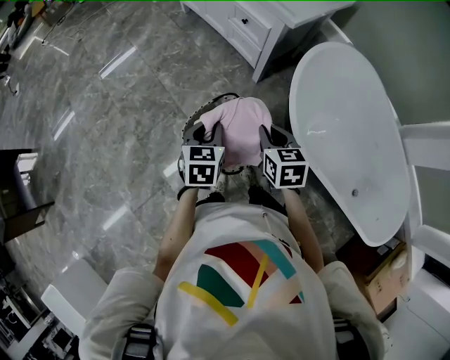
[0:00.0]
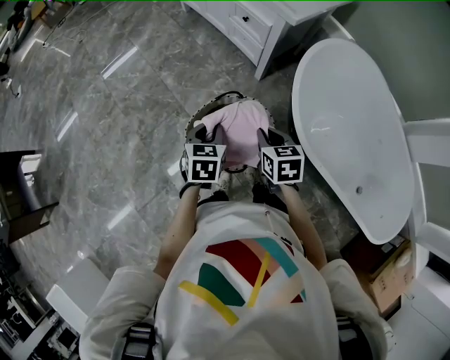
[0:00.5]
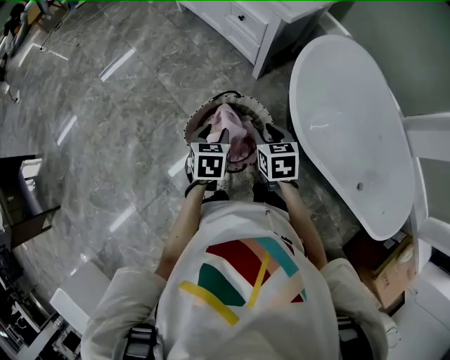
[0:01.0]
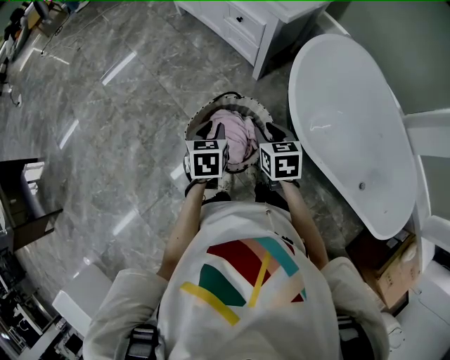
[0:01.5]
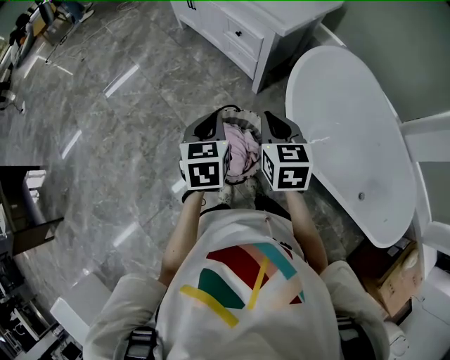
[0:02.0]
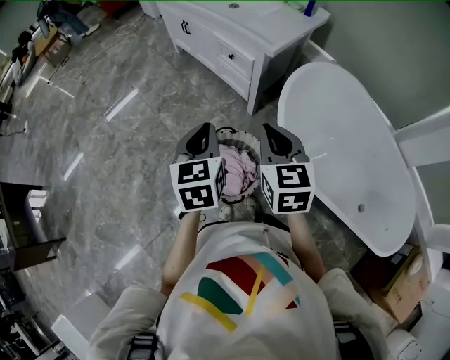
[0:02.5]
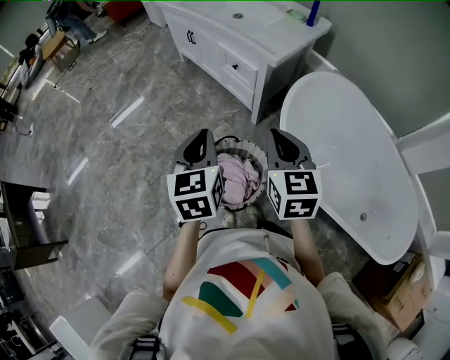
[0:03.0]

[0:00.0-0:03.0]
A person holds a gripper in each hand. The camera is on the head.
0:00.0 to 0:01.5: The grippers move only a little.
0:01.5 to 0:03.0: The two grippers go some 20 cm upward. The right gripper rotates about 30 degrees, and closes its fingers, while the left gripper rotates approximately 30 degrees.

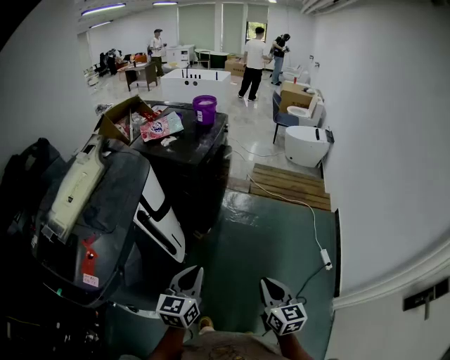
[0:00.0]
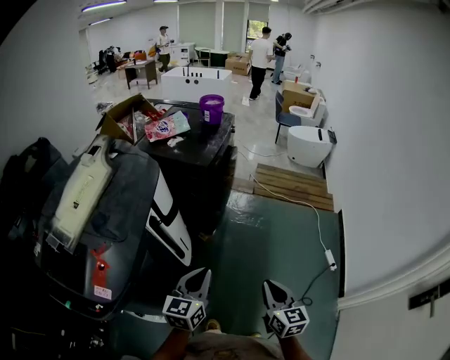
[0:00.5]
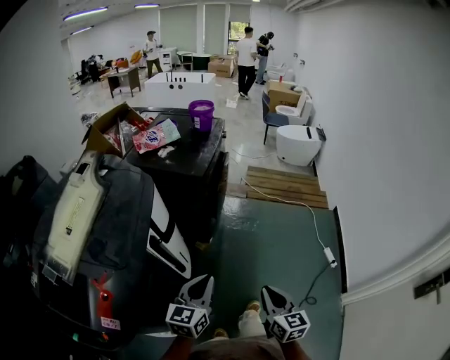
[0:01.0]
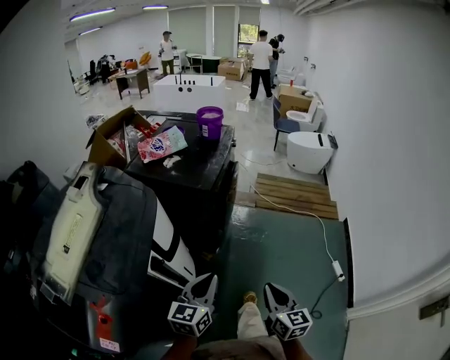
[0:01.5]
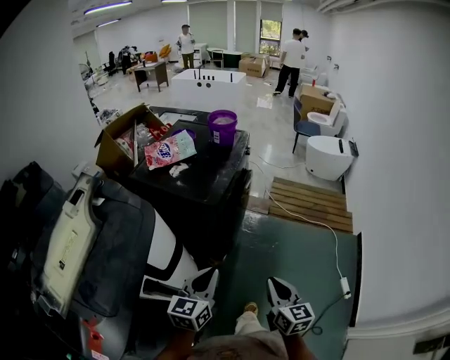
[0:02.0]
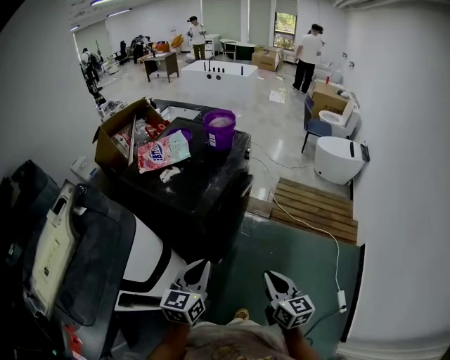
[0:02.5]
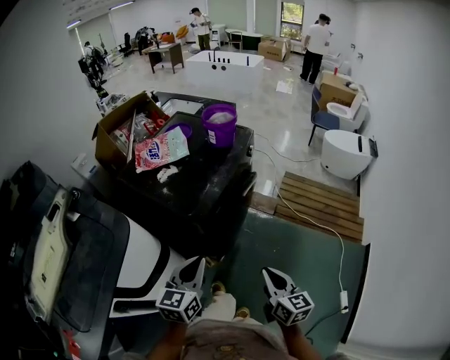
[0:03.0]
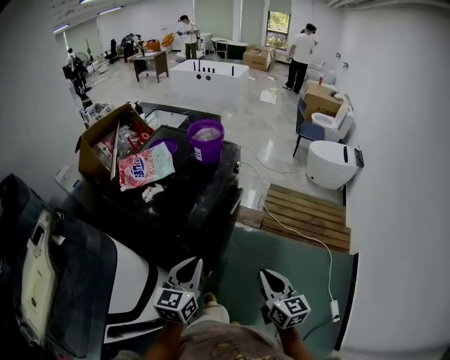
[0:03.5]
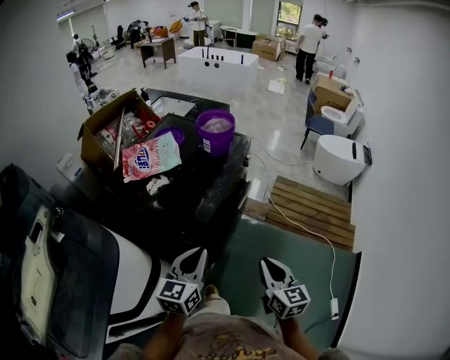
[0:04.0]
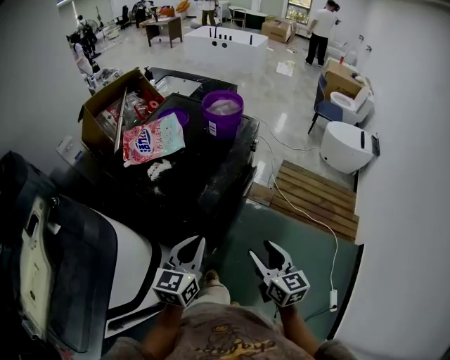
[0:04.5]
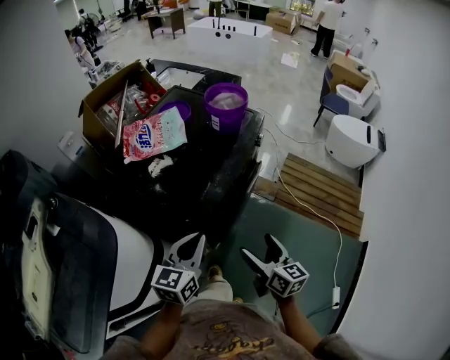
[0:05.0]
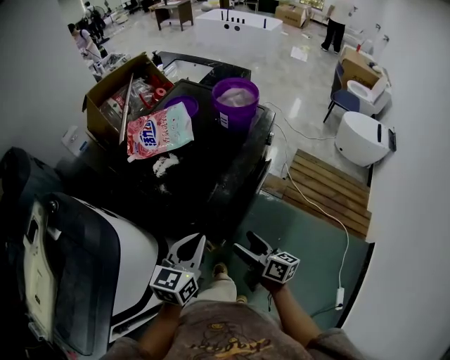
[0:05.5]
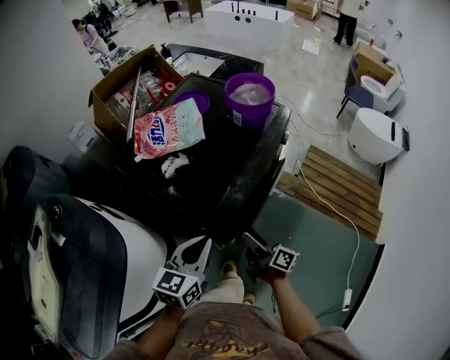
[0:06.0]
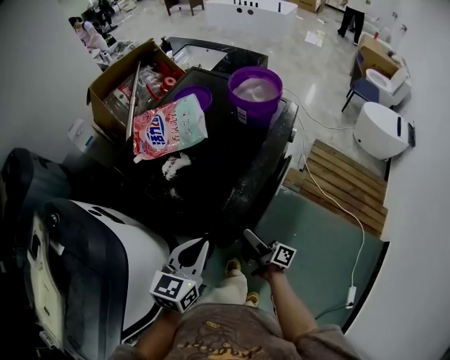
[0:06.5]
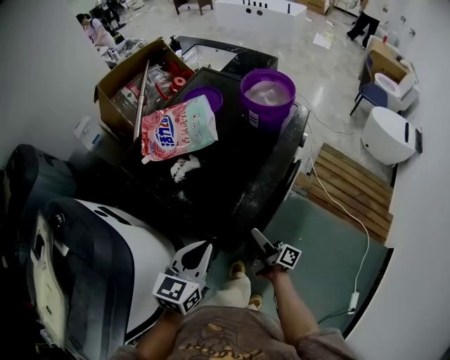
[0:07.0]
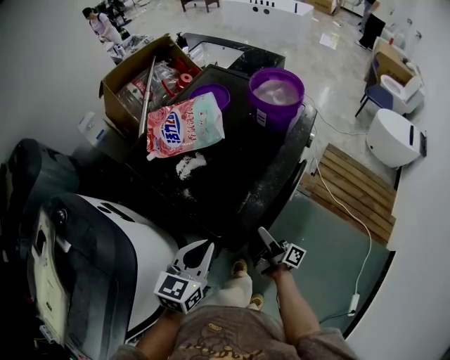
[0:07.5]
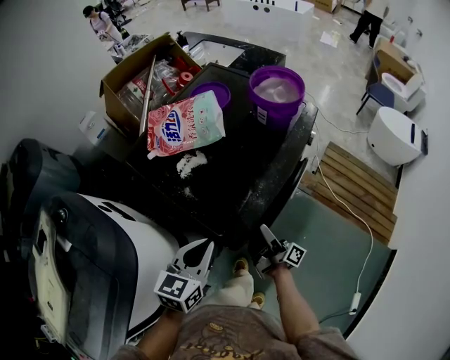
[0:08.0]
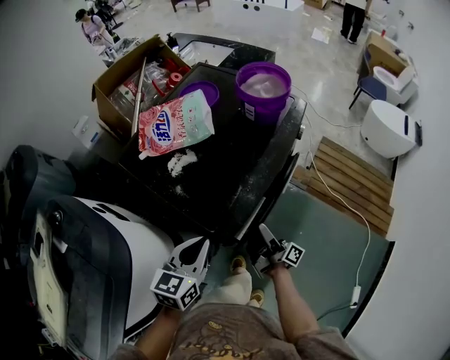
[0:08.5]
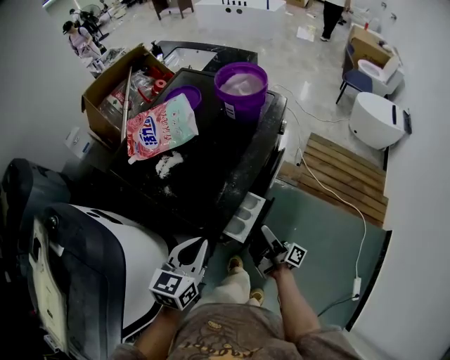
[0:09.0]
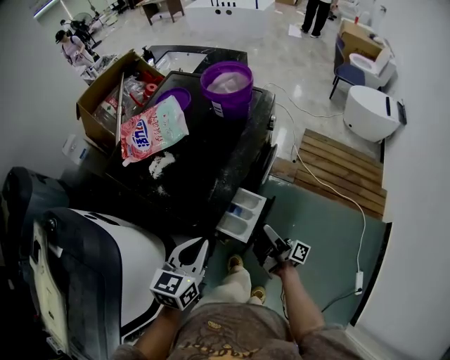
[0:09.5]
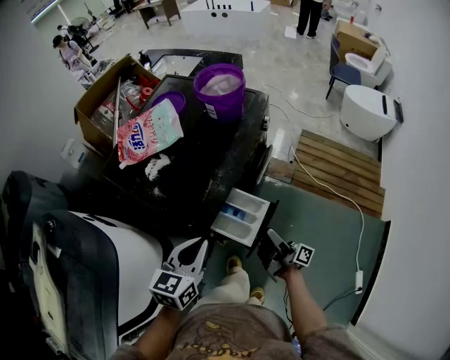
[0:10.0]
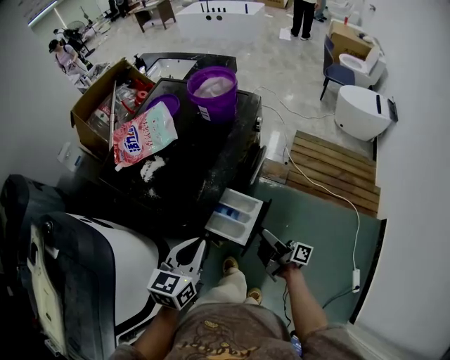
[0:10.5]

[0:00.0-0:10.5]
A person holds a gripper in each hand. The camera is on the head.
0:00.0 to 0:02.0: Both grippers travel together forward, roughly 25 cm.
0:02.0 to 0:04.0: Both grippers move forward, roughly 25 cm.
0:04.0 to 0:06.5: The right gripper shifts approximately 30 cm forward, downward and to the left, rolls clockwise, seen from behind, by approximately 60 degrees, and opens, while the left gripper travels forward, to the left and downward by about 15 cm.
0:06.5 to 0:08.5: There are only small adjustments of the grippers.
0:08.5 to 0:10.5: The right gripper moves to the right and backward, some 15 cm; the left gripper shifts roughly 10 cm to the right.

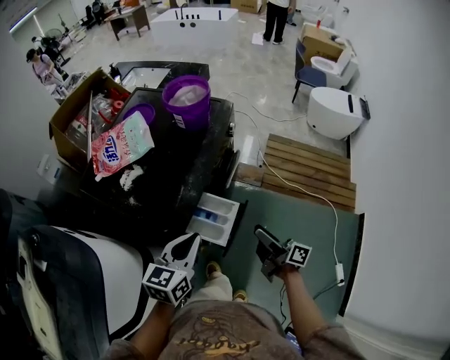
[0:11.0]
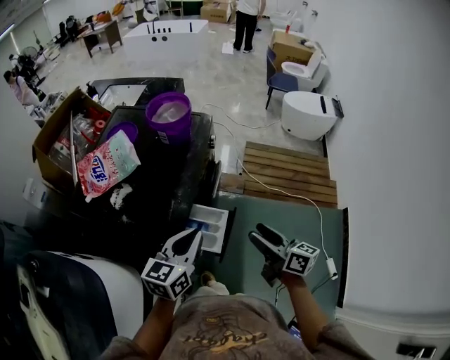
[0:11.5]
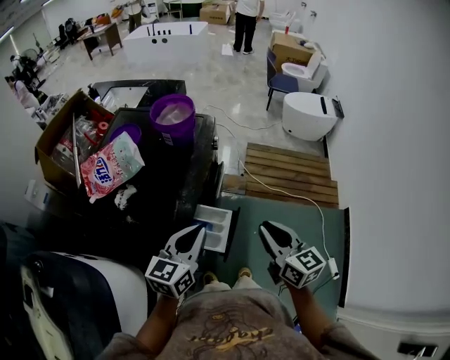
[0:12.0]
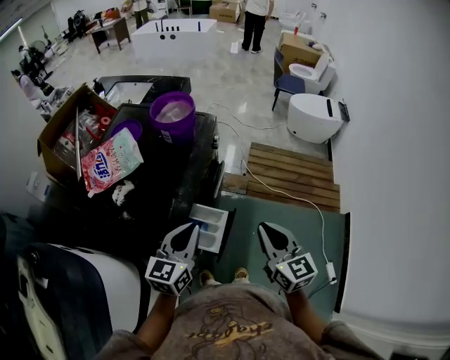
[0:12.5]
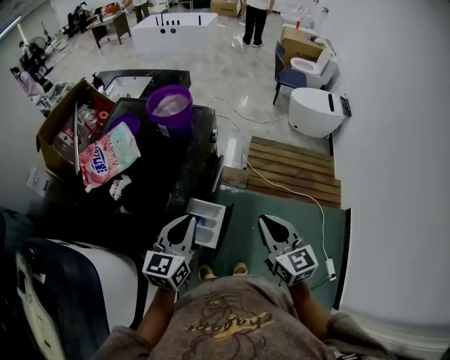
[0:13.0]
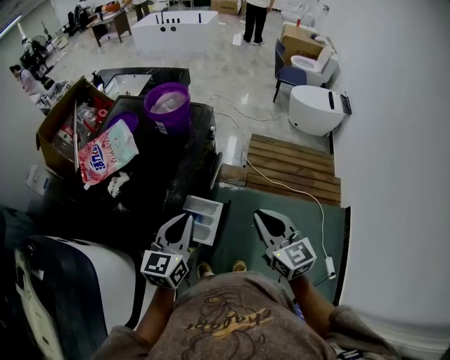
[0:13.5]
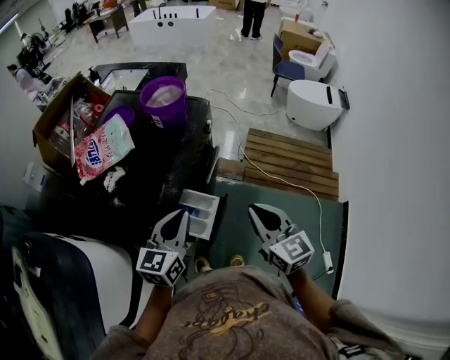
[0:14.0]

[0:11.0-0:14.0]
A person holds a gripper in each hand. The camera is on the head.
0:11.0 to 0:12.5: The left gripper ends up some 5 cm from where it was, while the right gripper travels upward by about 15 cm, rolls counterclockwise, seen from behind, by some 60 degrees, and closes its fingers.
0:12.5 to 0:14.0: The grippers make only small movements.

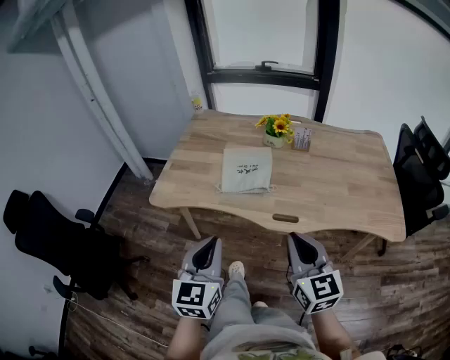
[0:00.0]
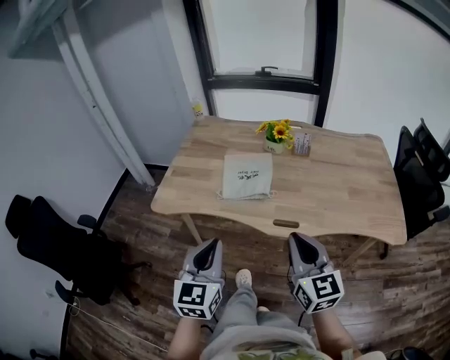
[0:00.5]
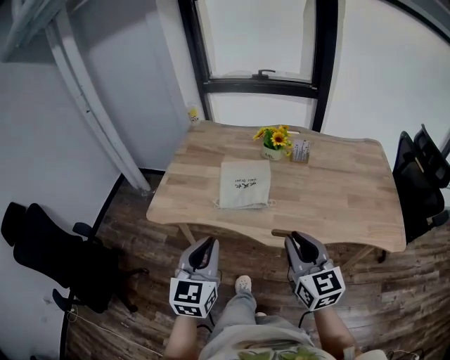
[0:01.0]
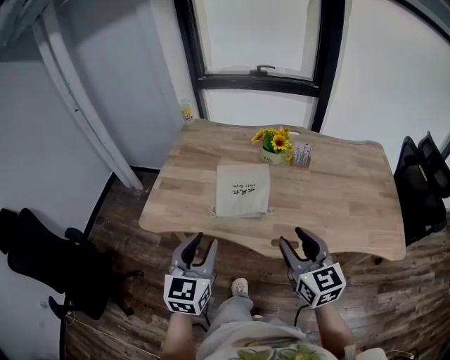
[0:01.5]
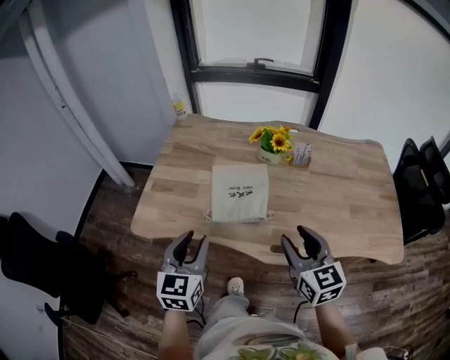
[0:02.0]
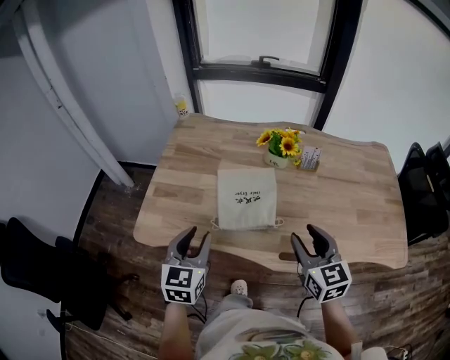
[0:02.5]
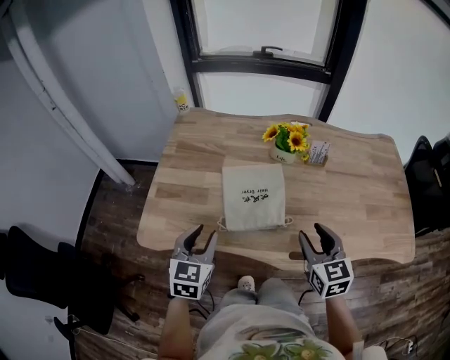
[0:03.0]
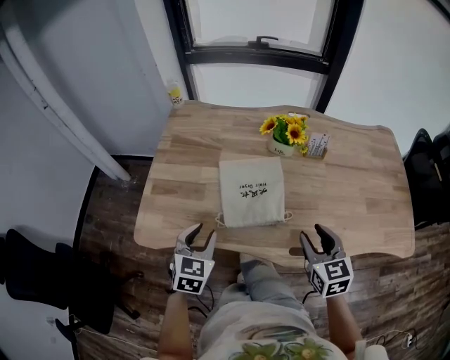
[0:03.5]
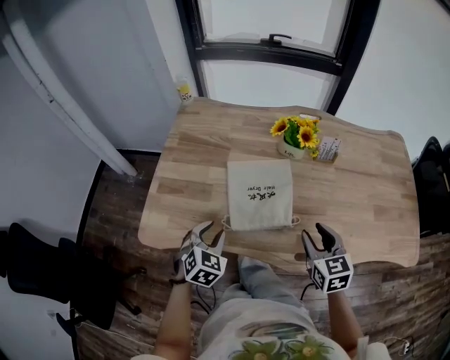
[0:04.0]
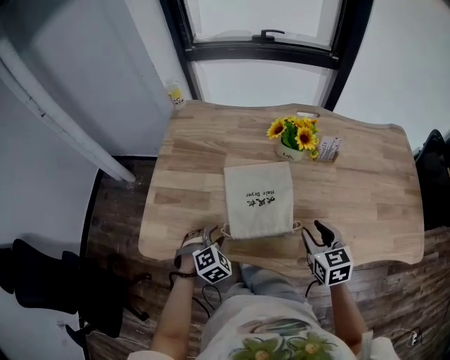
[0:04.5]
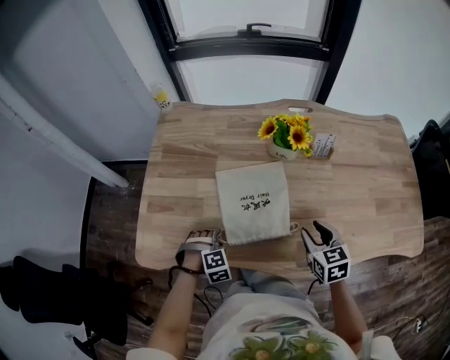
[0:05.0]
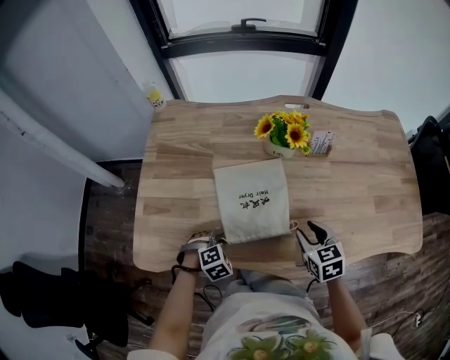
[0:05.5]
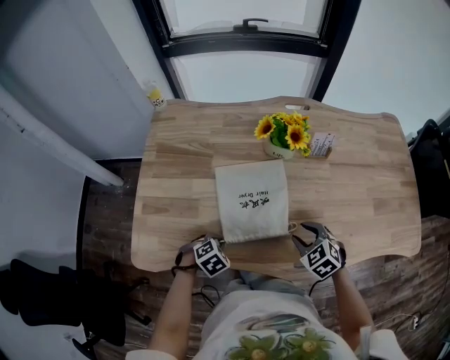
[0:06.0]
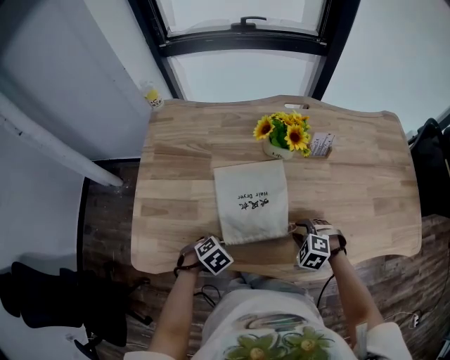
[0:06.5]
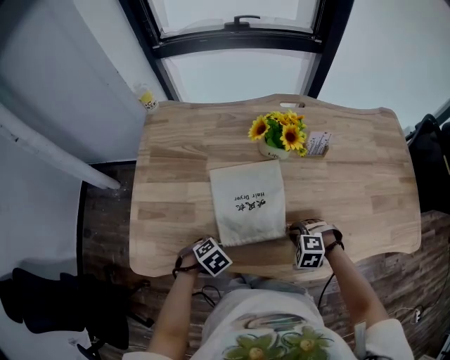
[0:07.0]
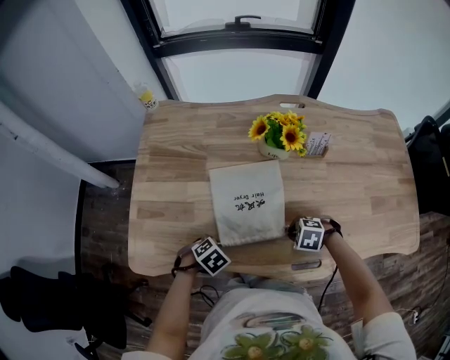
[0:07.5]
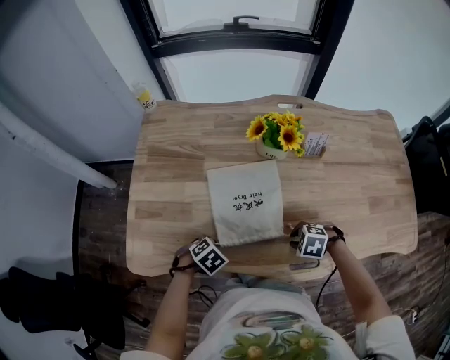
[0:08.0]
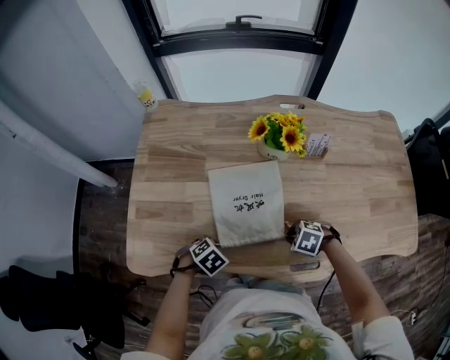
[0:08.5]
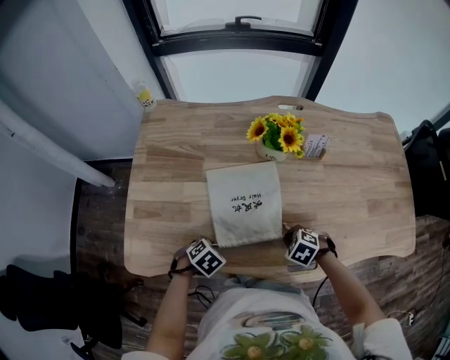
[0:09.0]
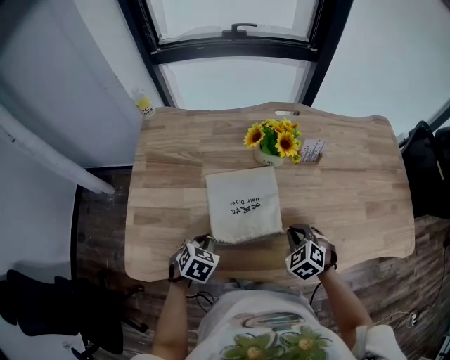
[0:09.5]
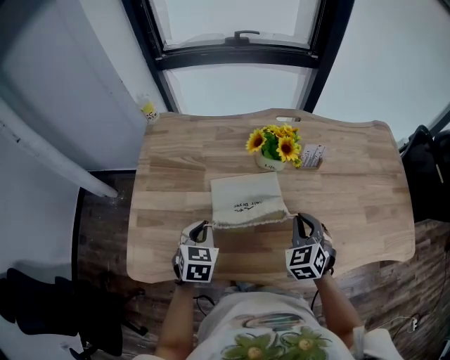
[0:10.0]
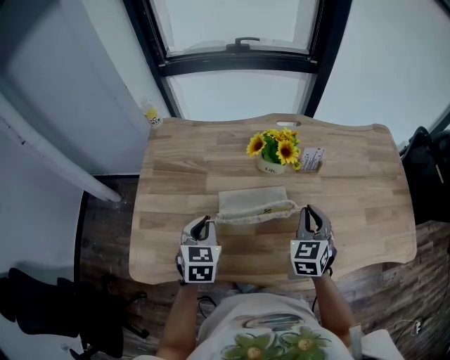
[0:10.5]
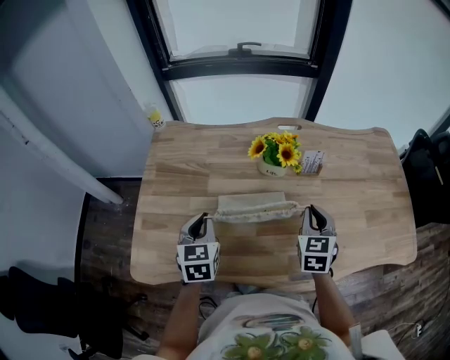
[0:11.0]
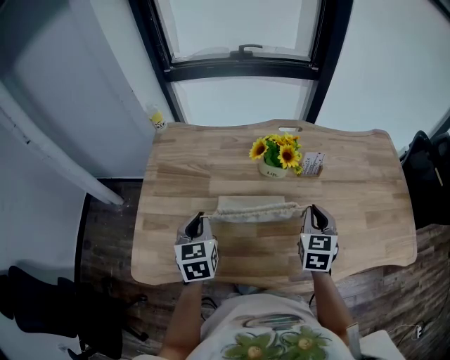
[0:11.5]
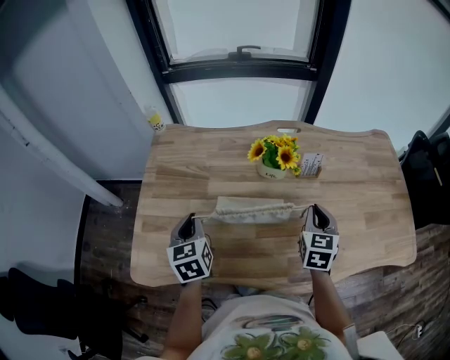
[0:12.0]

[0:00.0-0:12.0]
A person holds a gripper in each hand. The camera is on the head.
0:00.0 to 0:02.0: The two grippers go roughly 20 cm forward. The right gripper opens, while the left gripper opens up.
0:02.0 to 0:04.0: The two grippers go about 20 cm downward and forward. The left gripper changes its angle by approximately 40 degrees.
0:04.0 to 0:06.0: Both grippers travel together downward, some 15 cm. The left gripper points its fingers about 30 degrees further downward, and closes its fingers; the right gripper changes its angle by some 30 degrees.
0:06.0 to 0:08.0: The right gripper travels downward by approximately 5 cm, turns by some 40 degrees, and closes its fingers.
0:08.0 to 0:10.0: Both grippers travel together upward, approximately 15 cm. The right gripper tilts its fingers about 40 degrees upward. The left gripper tips its fingers upward by approximately 40 degrees.
0:10.0 to 0:12.0: The left gripper shifts some 10 cm upward, and swivels roughly 30 degrees. The right gripper travels upward by roughly 5 cm, and turns by approximately 30 degrees.
